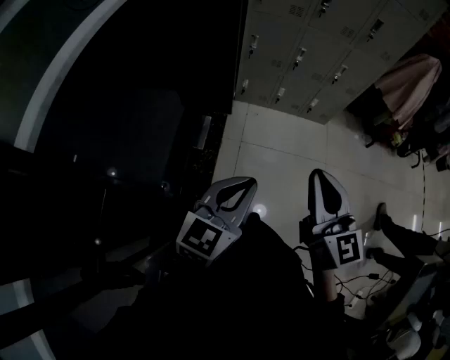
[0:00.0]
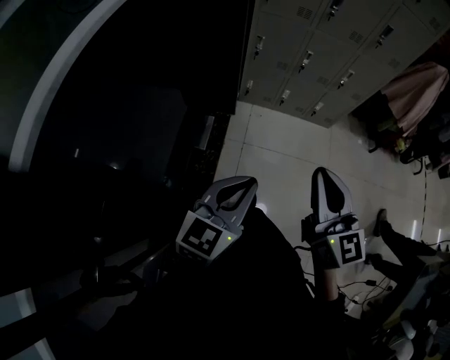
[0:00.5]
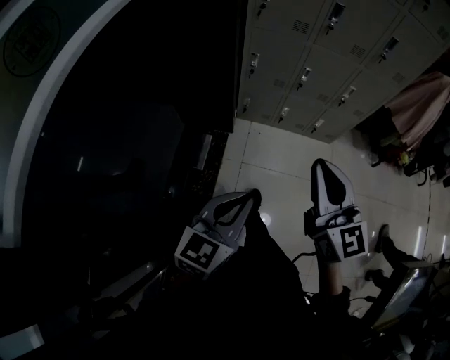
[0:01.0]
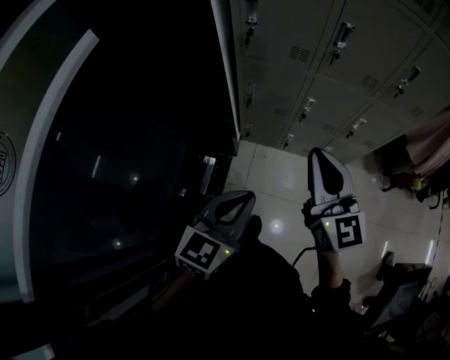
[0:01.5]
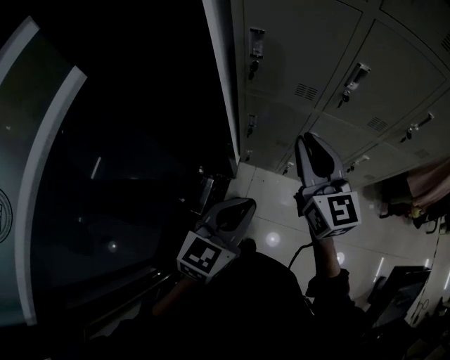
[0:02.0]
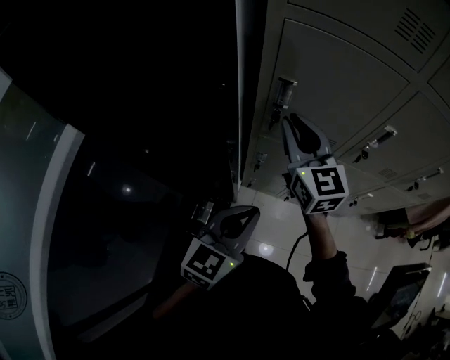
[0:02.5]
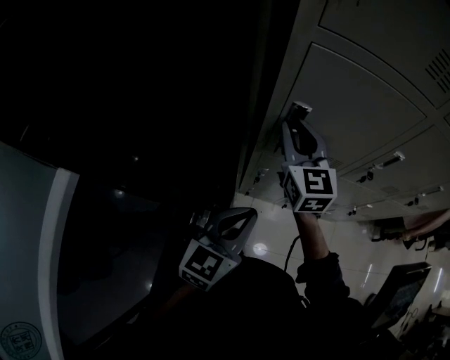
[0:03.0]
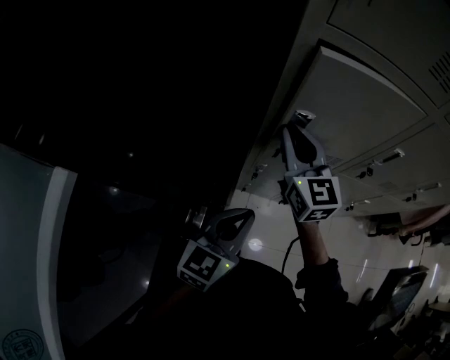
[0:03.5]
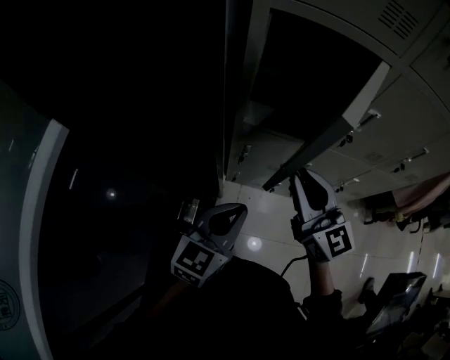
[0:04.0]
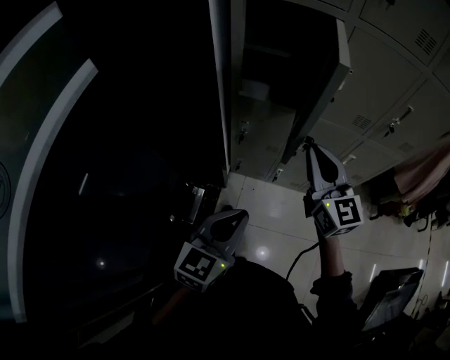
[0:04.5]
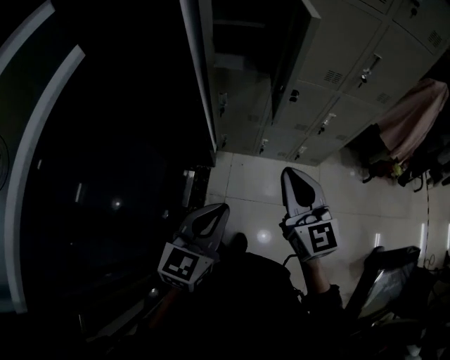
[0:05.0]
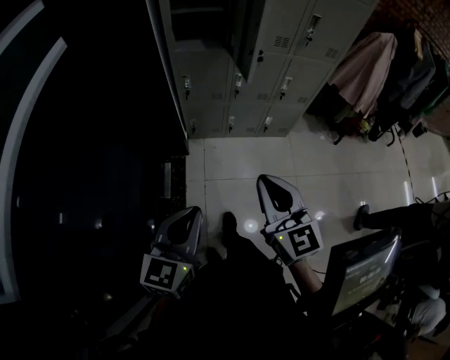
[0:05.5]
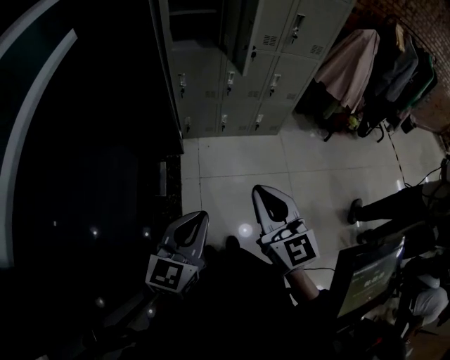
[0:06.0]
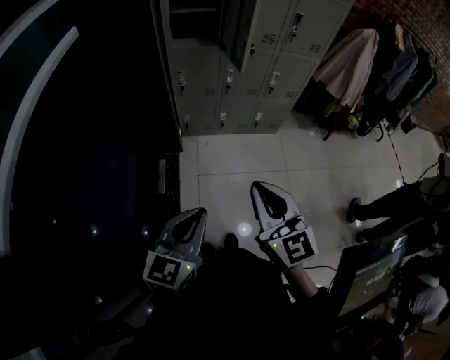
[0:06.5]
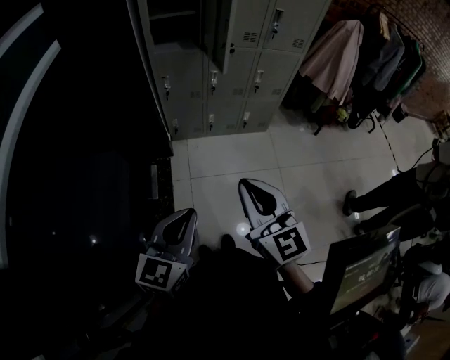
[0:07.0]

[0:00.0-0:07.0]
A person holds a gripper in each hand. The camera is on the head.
0:00.0 to 0:02.0: The two grippers travel together, forward, approximately 50 cm.
0:02.0 to 0:03.5: The two grippers go some 25 cm forward and to the left.
0:03.5 to 0:05.0: The right gripper shifts some 50 cm backward and to the right. Meanwhile the left gripper goes some 35 cm backward.
0:05.0 to 0:07.0: The two grippers go some 30 cm backward.

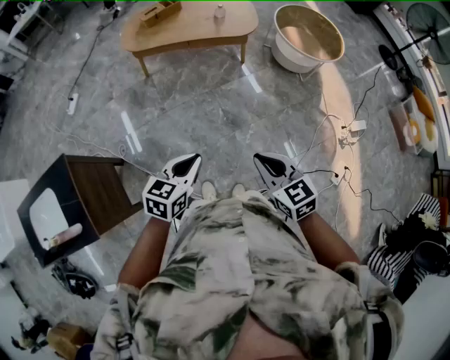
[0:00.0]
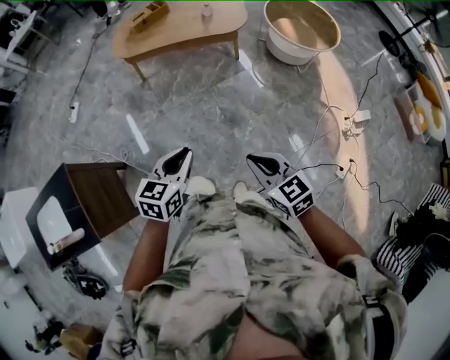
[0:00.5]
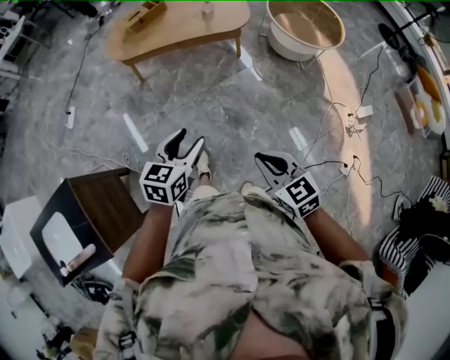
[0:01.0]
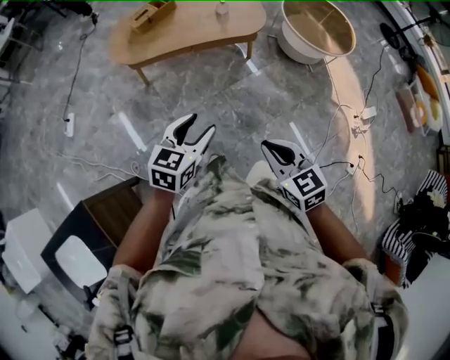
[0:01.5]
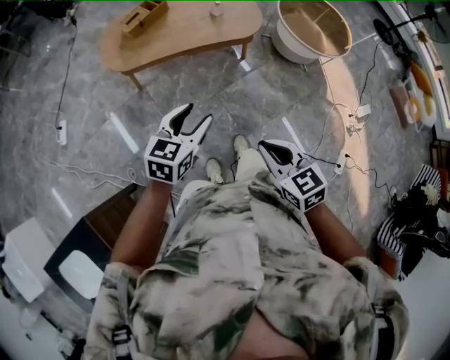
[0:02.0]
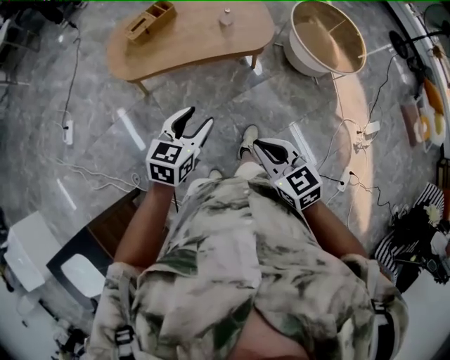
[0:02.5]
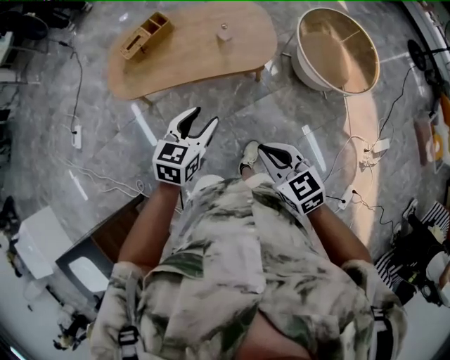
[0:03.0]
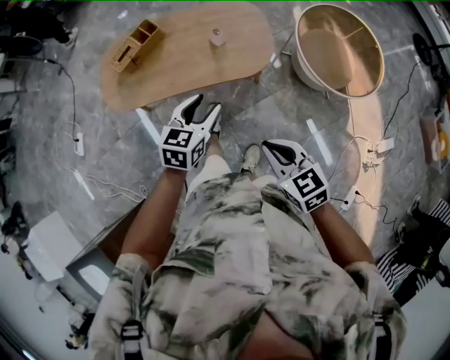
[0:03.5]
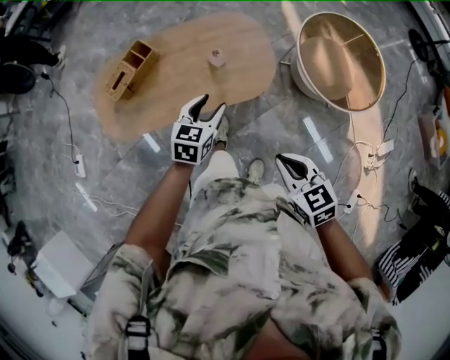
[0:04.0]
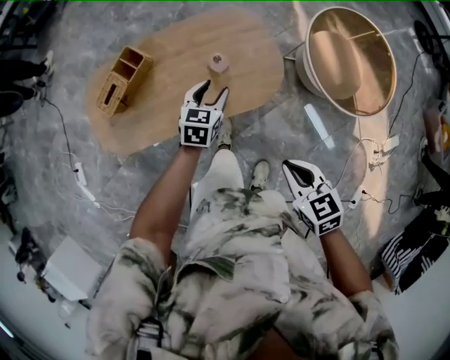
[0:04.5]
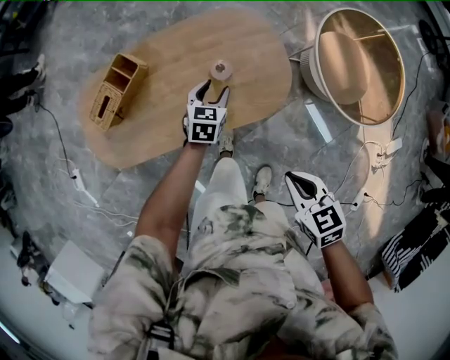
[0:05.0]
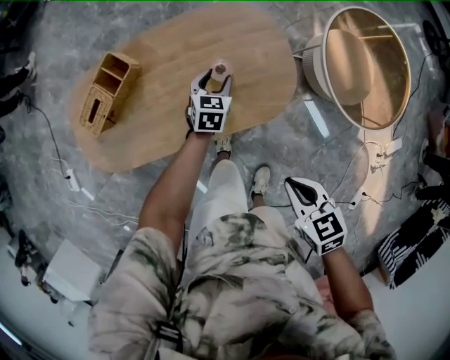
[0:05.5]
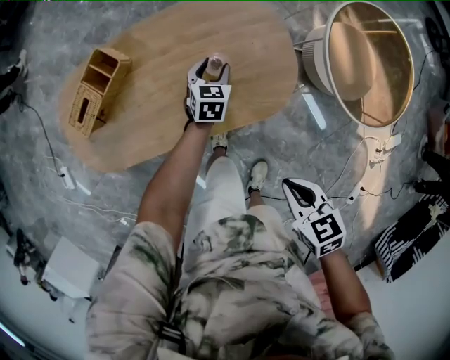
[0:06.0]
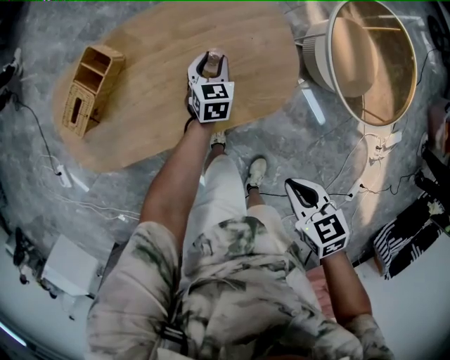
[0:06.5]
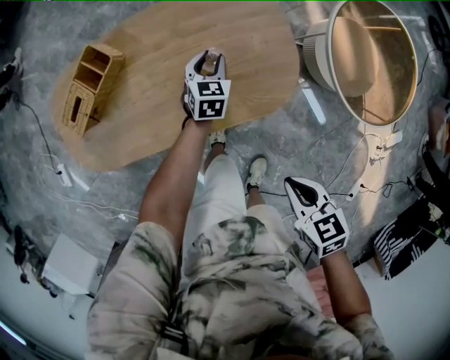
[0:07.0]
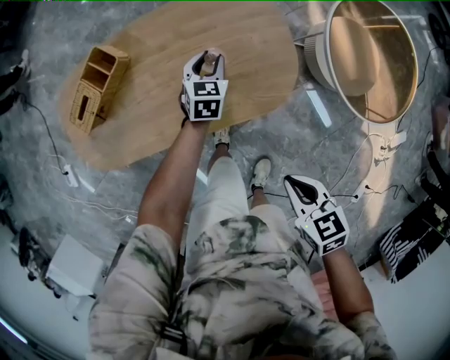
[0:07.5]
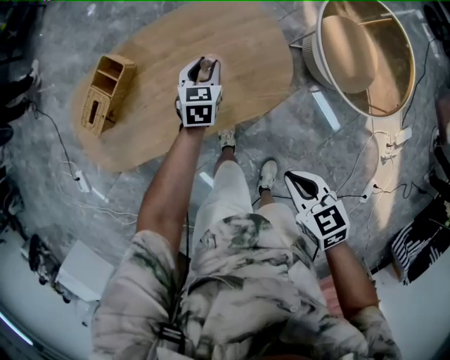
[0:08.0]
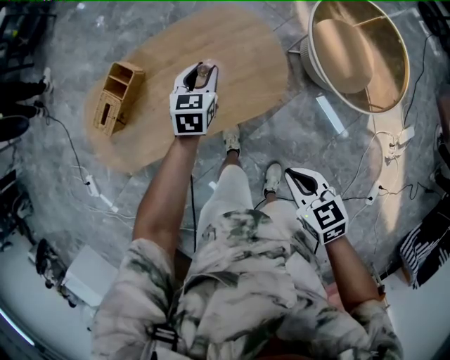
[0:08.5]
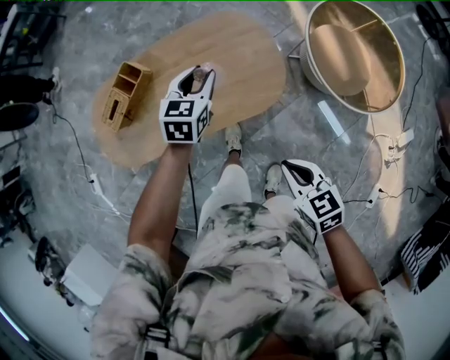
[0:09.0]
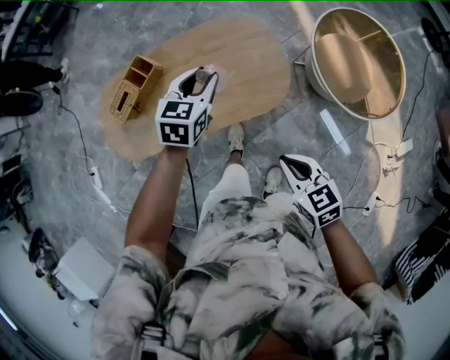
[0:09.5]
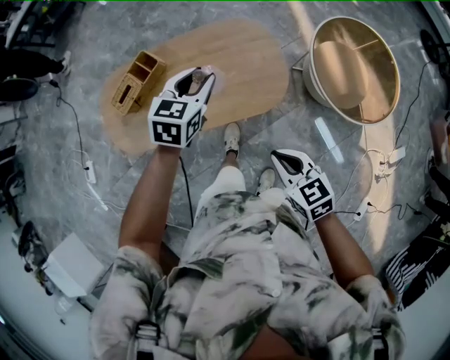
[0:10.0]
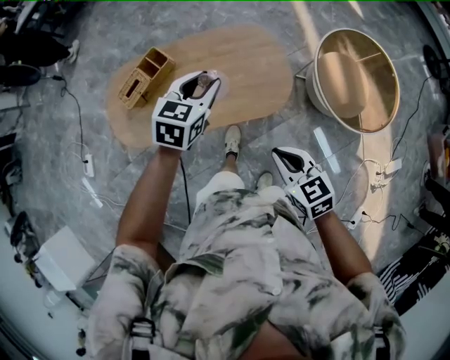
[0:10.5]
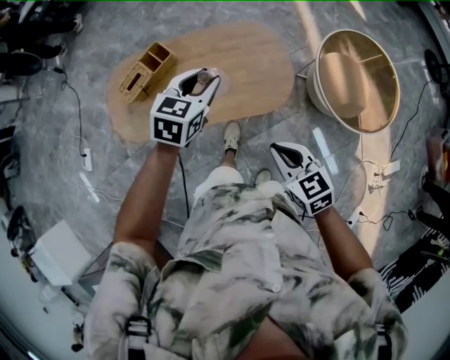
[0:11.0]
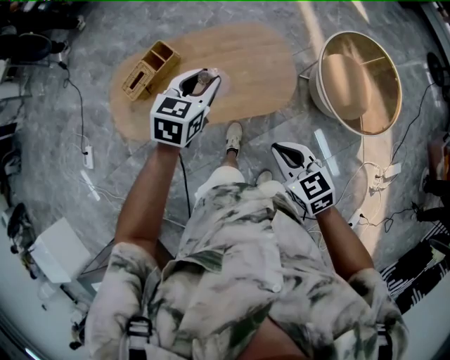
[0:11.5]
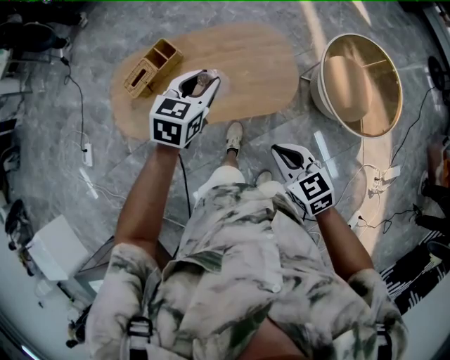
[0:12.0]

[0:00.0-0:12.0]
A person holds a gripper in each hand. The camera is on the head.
0:00.0 to 0:02.0: The left gripper heads forward, covering roughly 40 cm, and opens; the right gripper is displaced forward and to the left by some 30 cm.
0:02.0 to 0:04.0: Both grippers are carried forward and to the right, approximately 50 cm.
0:04.0 to 0:06.0: The left gripper heads downward and forward, covering about 40 cm. The right gripper shifts approximately 25 cm downward and forward.
0:06.0 to 0:08.0: The left gripper travels upward by approximately 10 cm.
0:08.0 to 0:10.0: The right gripper goes approximately 10 cm upward, while the left gripper shifts roughly 30 cm upward.
0:10.0 to 0:12.0: The left gripper ends up some 5 cm from where it was.

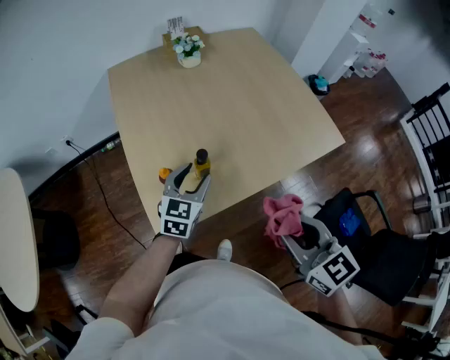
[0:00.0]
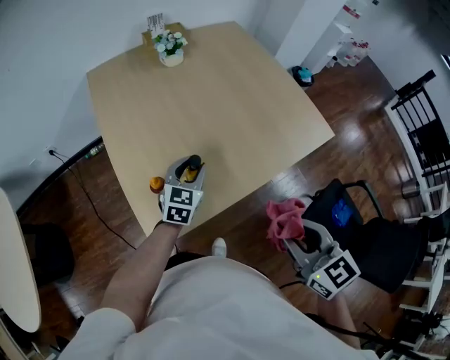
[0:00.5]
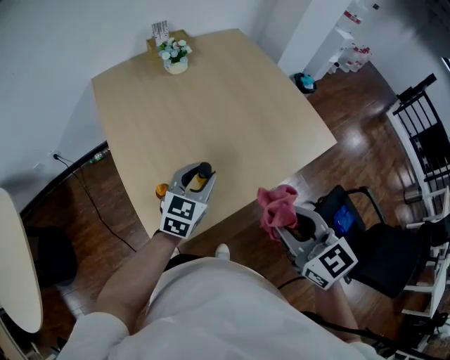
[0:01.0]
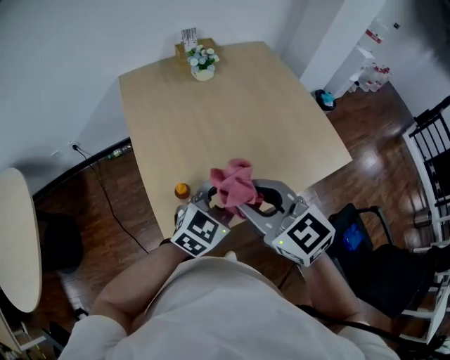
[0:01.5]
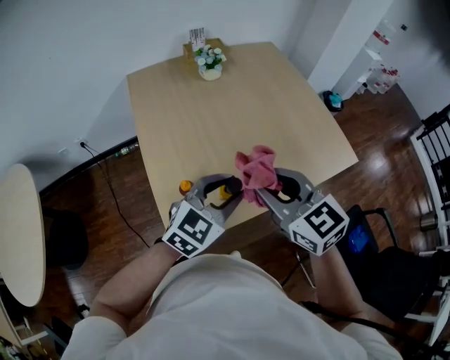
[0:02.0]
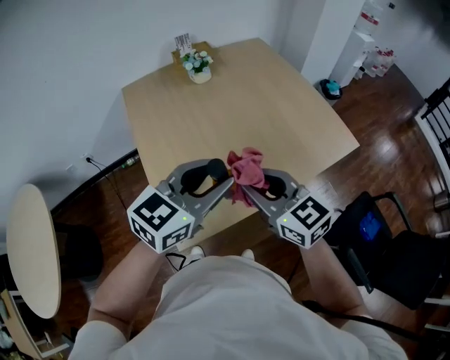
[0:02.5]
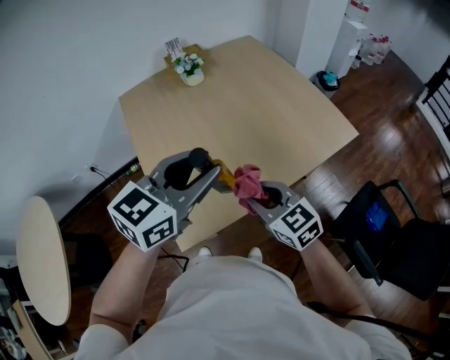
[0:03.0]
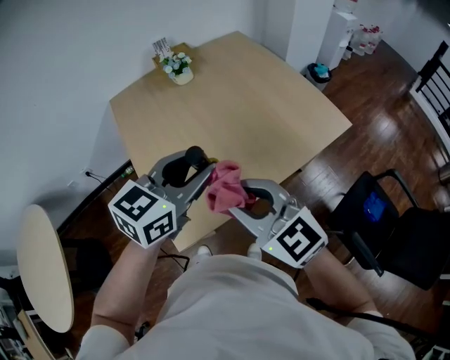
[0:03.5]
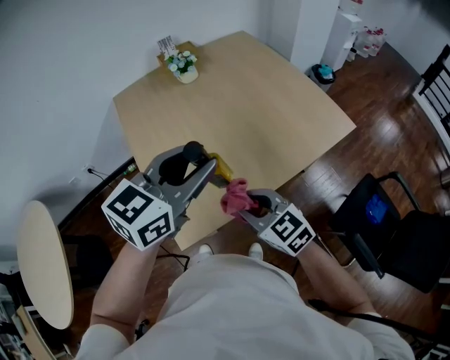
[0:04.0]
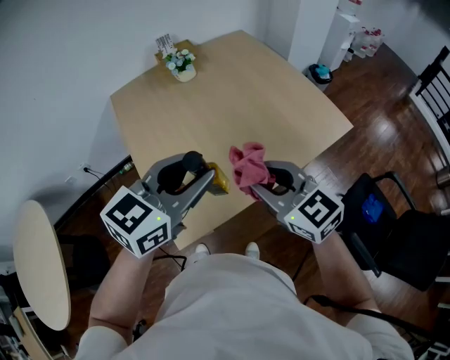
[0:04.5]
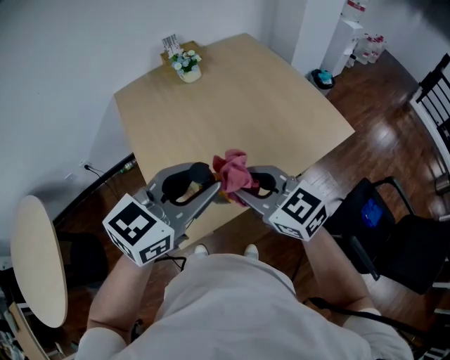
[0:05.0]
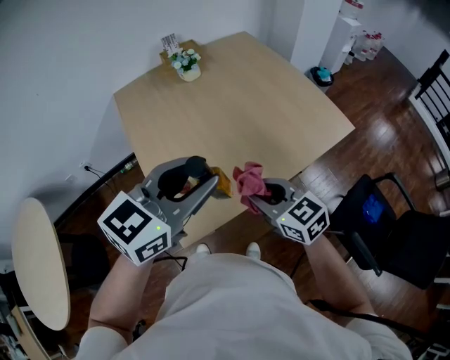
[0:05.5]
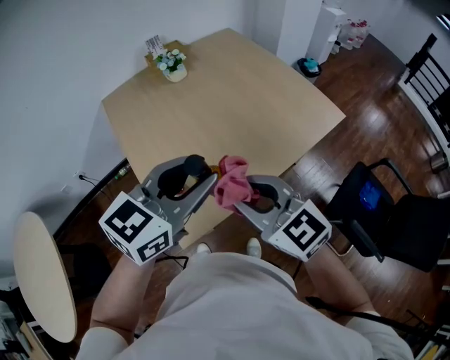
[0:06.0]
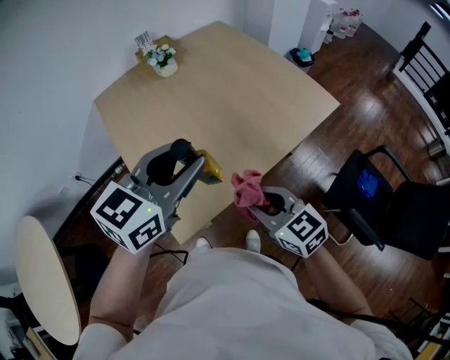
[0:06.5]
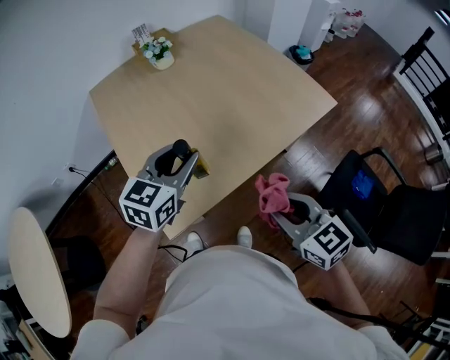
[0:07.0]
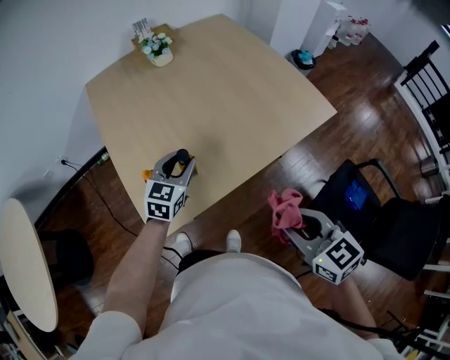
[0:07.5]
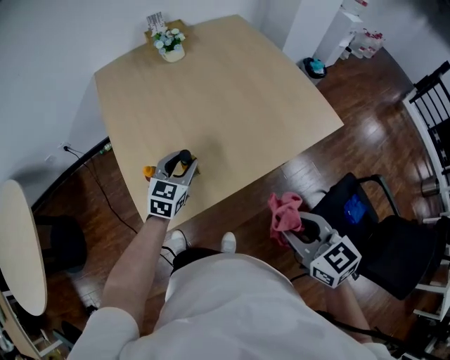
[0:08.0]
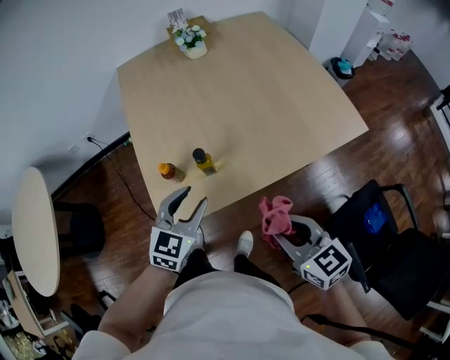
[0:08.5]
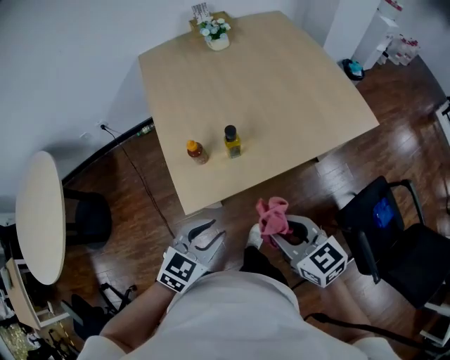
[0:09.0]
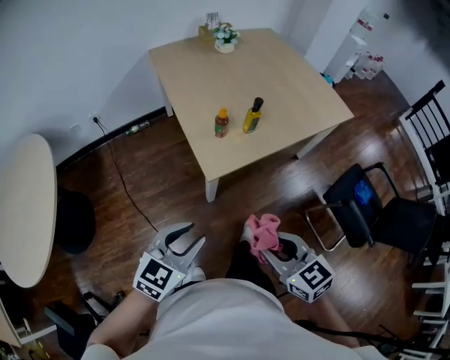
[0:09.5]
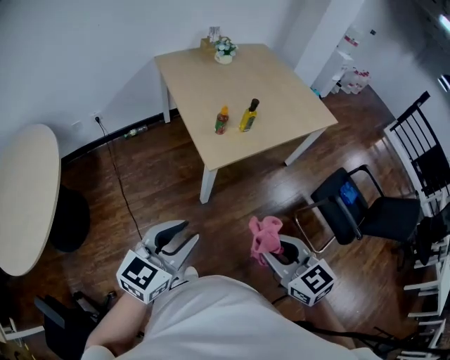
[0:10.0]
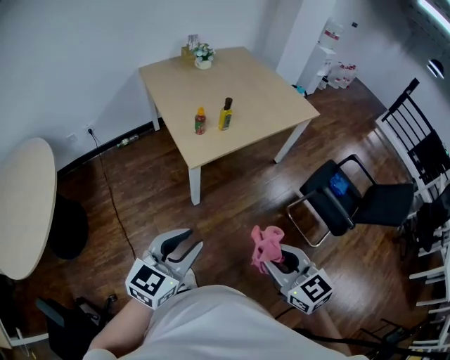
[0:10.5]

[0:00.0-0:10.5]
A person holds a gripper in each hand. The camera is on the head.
0:00.0 to 0:02.0: The right gripper moves forward and to the left, roughly 15 cm; the left gripper is displaced upward by roughly 10 cm, and changes its angle by about 20 degrees.
0:02.0 to 0:04.0: The right gripper moves up and down over some 10 cm, changing direction 2 times. Meanwhile the left gripper moves upward, roughly 10 cm.
0:04.0 to 0:06.5: The right gripper goes up and down, roughly 10 cm each way, reversing 3 times.
0:06.5 to 0:08.5: The left gripper heads downward, covering approximately 20 cm, and rotates roughly 30 degrees, while the right gripper travels to the right by approximately 10 cm.
0:08.5 to 0:10.5: Both grippers are carried backward, approximately 50 cm. The left gripper changes its angle by approximately 20 degrees.
